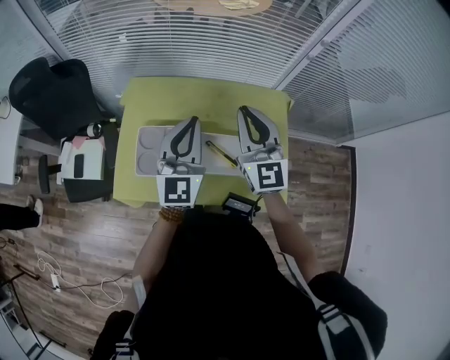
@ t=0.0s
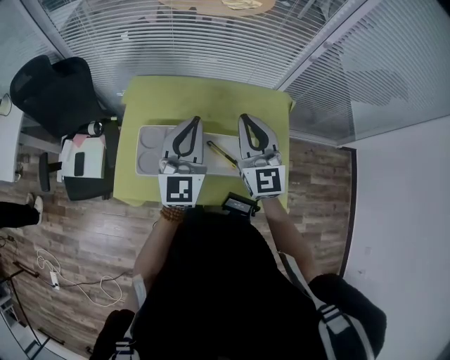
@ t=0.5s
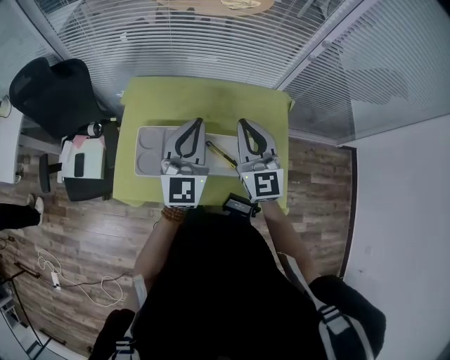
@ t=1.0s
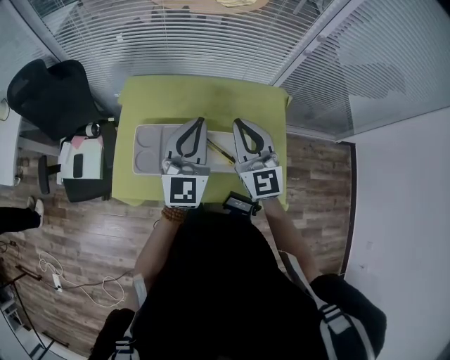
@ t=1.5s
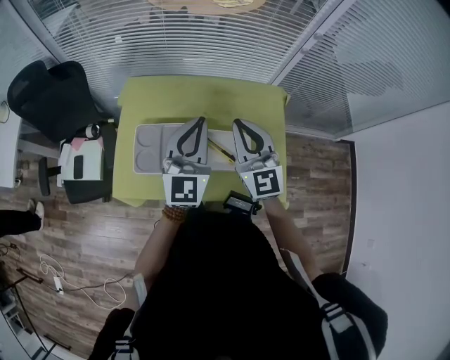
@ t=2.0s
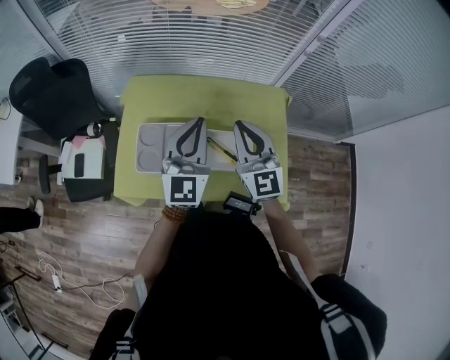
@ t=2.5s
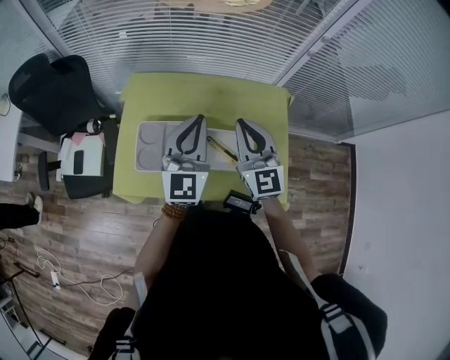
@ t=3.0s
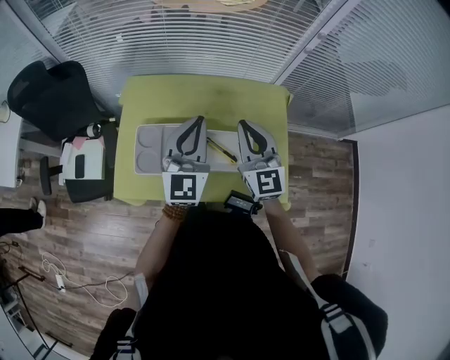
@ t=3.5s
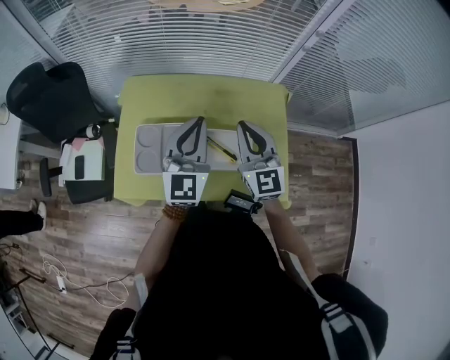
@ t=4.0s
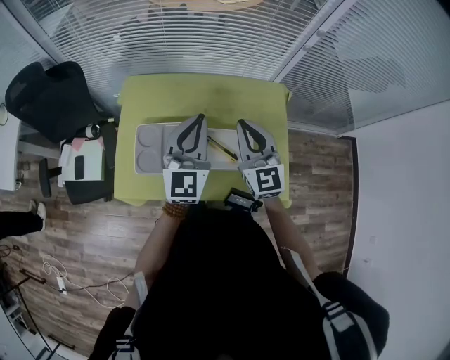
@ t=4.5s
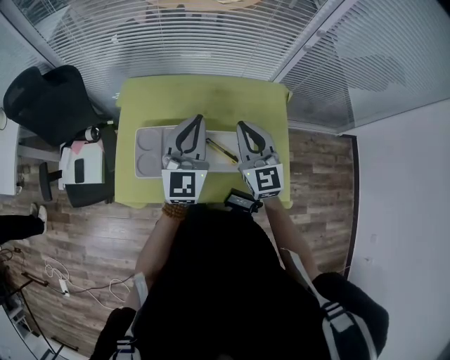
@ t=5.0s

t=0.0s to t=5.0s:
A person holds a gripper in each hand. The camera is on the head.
t=0.0s to t=2.5s: The grippers move only a little.
t=2.5s to t=5.0s: The right gripper changes place by about 5 cm.

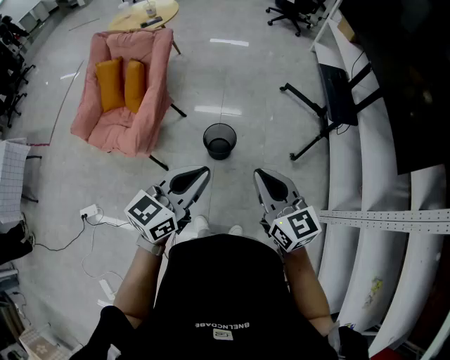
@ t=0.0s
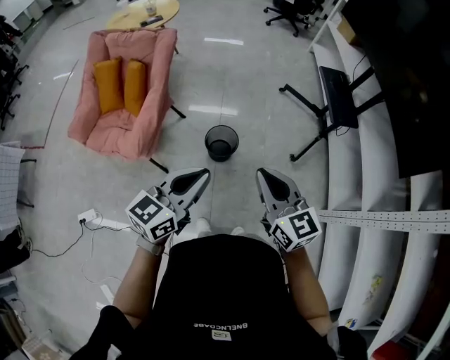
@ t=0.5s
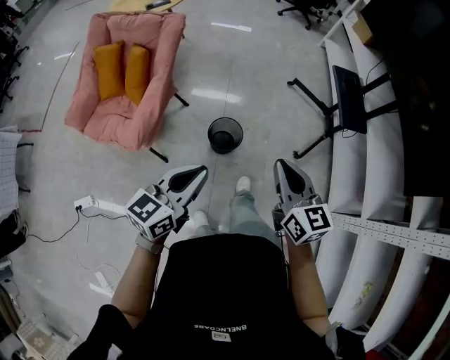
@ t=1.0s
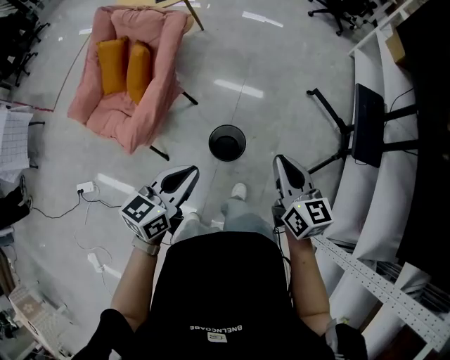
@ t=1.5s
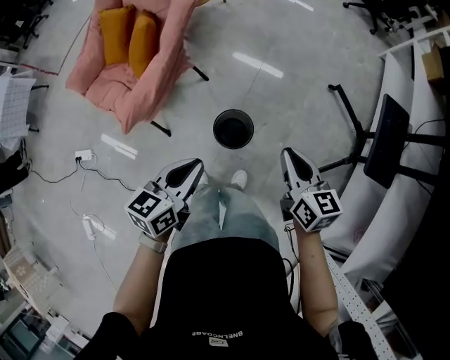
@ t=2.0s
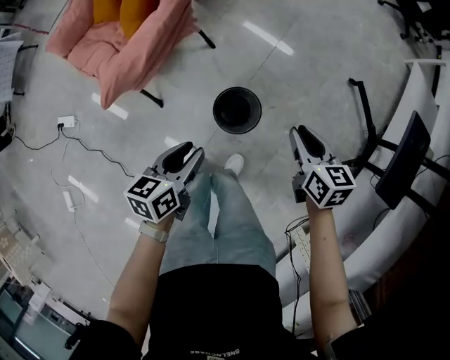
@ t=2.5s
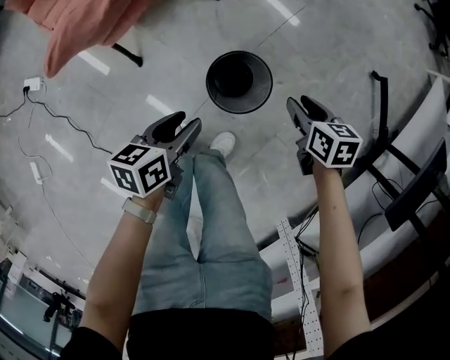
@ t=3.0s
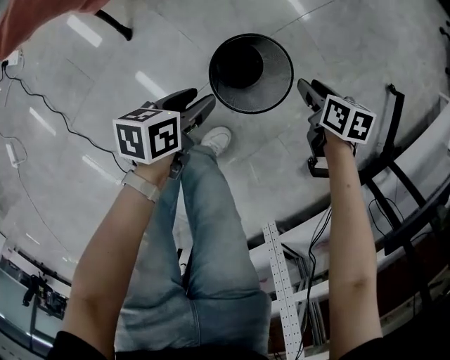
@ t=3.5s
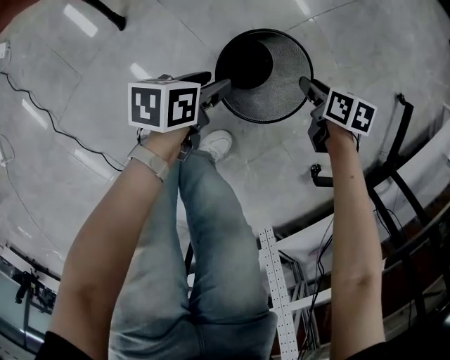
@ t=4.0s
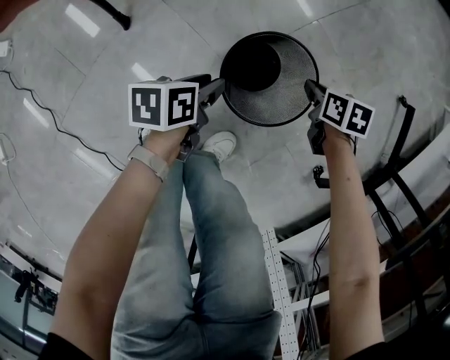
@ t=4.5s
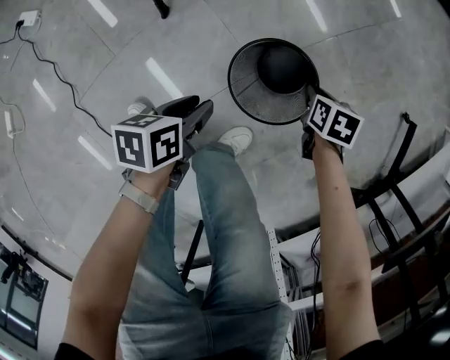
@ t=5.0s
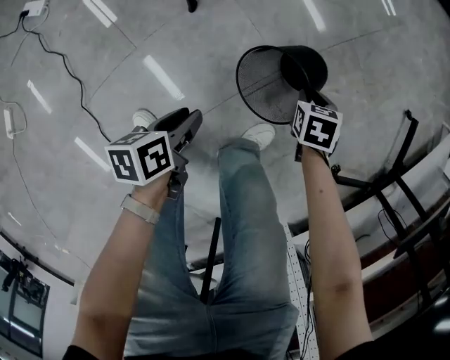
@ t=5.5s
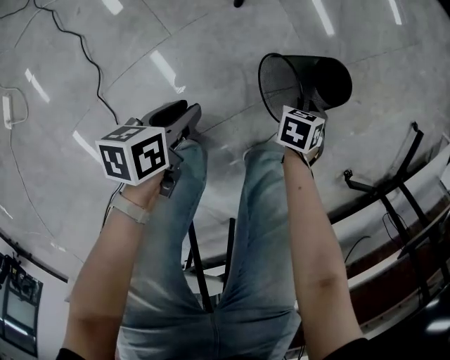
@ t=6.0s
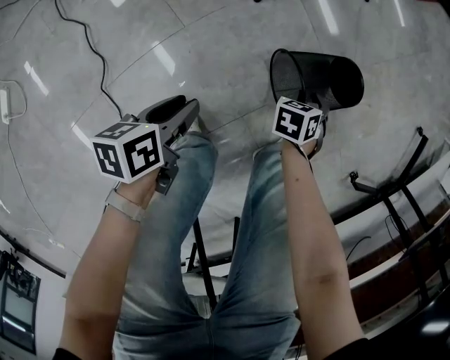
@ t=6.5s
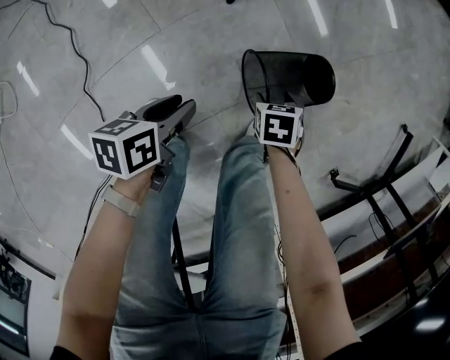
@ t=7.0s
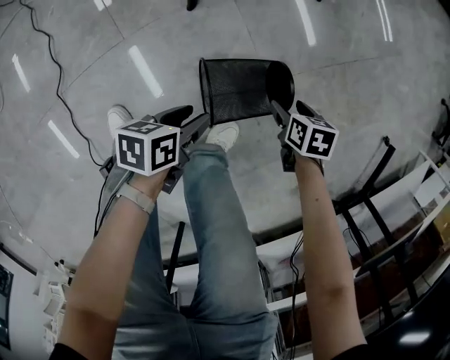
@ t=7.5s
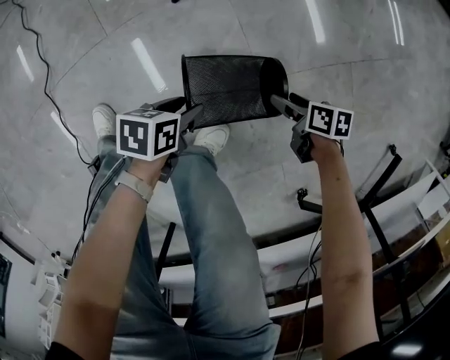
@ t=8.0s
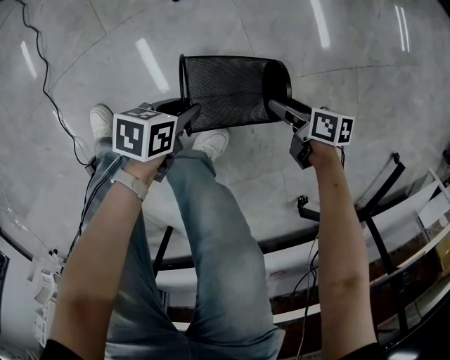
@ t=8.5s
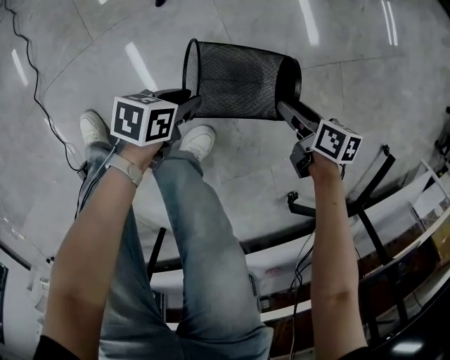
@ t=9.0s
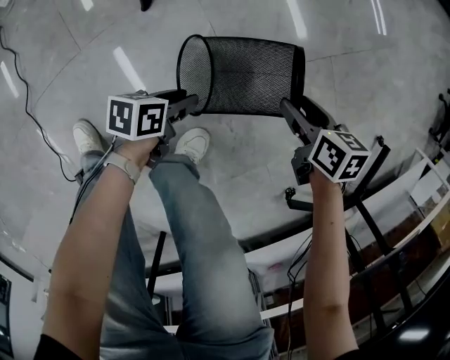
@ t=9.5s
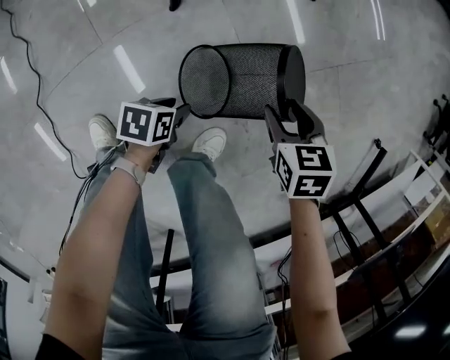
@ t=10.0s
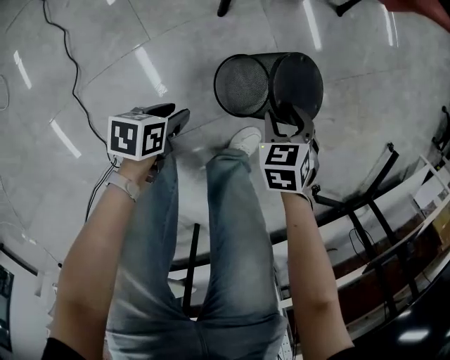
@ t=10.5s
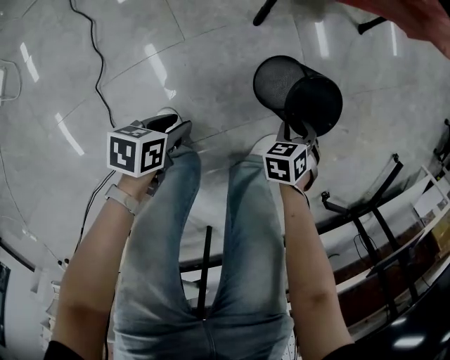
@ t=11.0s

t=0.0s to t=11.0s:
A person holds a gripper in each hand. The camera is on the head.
t=0.0s to t=2.0s: Both grippers travel together forward and downward, roughly 30 cm. The left gripper turns by some 40 degrees; the right gripper turns by roughly 20 degrees.
t=2.0s to t=3.5s: Both grippers travel together downward, about 50 cm. The left gripper rotates approximately 40 degrees, and opens up; the right gripper points its fingers about 40 degrees further downward, and opens.
t=3.5s to t=5.5s: The two grippers go roughly 25 cm to the left and backward. The right gripper changes its angle by approximately 30 degrees.
t=5.5s to t=7.5s: The right gripper opens its fingers.
t=7.5s to t=9.0s: The left gripper heads downward, covering about 10 cm. The right gripper goes downward and returns, some 10 cm each way, and rotates some 30 degrees.
t=9.0s to t=11.0s: The right gripper ends up about 25 cm from where it was, changes its angle by roughly 70 degrees, and closes up. Meanwhile the left gripper ends up approximately 35 cm from where it was.

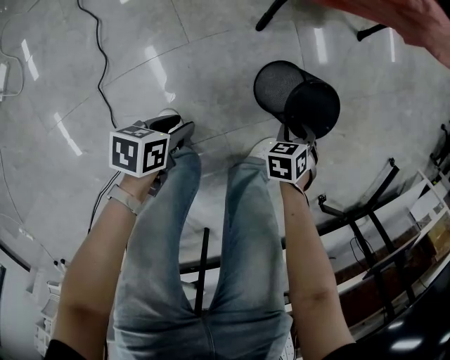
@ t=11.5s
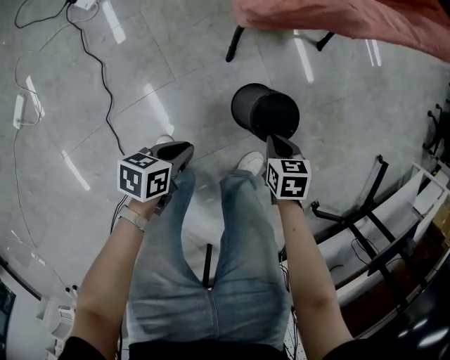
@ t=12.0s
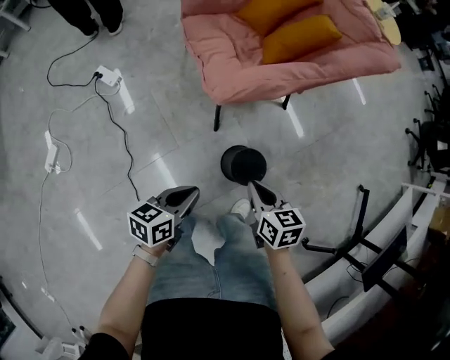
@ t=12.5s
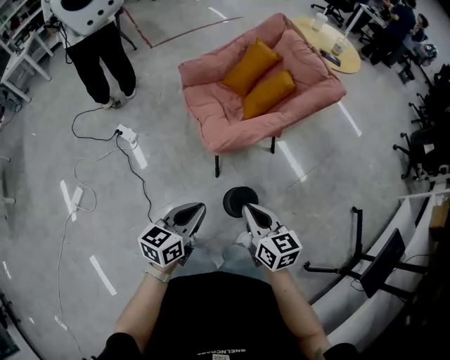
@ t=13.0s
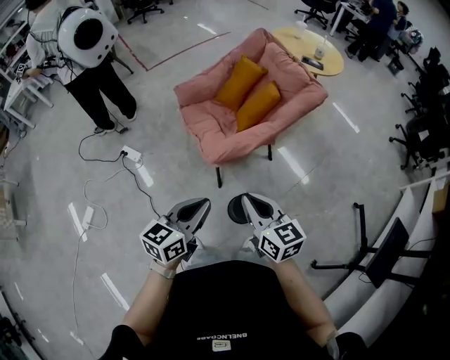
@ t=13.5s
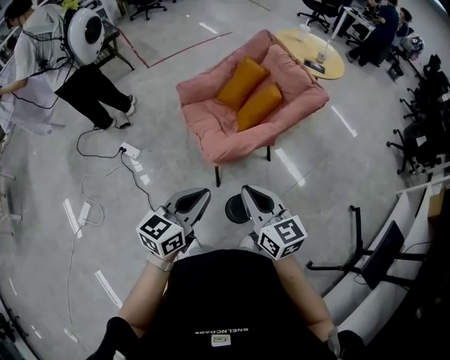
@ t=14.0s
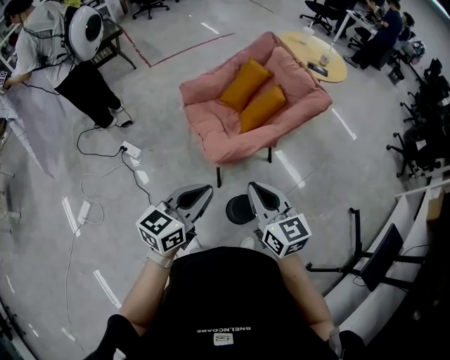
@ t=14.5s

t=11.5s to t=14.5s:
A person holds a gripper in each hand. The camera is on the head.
t=11.5s to t=13.0s: Both grippers move upward, some 60 cm. The right gripper angles its fingers upward, by some 50 degrees, and closes its fingers; the left gripper turns by approximately 50 degrees, and closes.
t=13.0s to t=14.5s: The two grippers go about 15 cm upward.

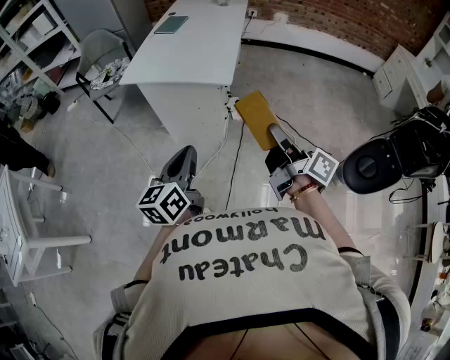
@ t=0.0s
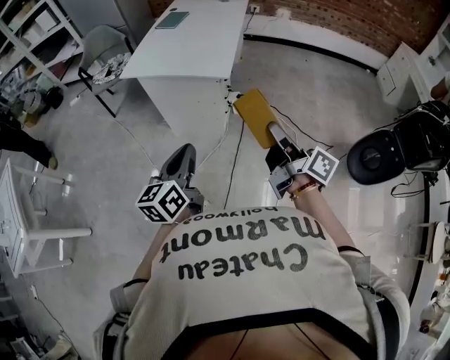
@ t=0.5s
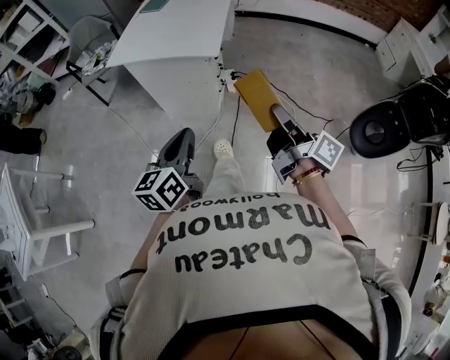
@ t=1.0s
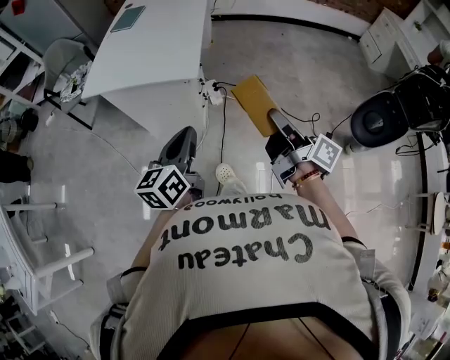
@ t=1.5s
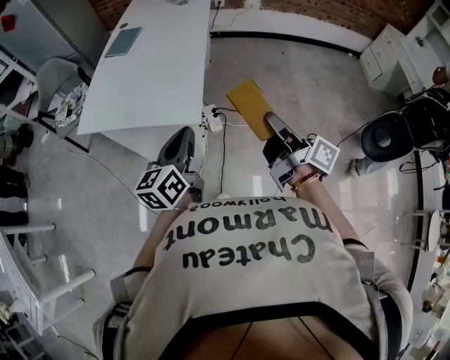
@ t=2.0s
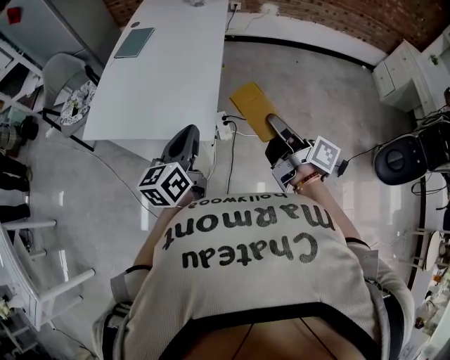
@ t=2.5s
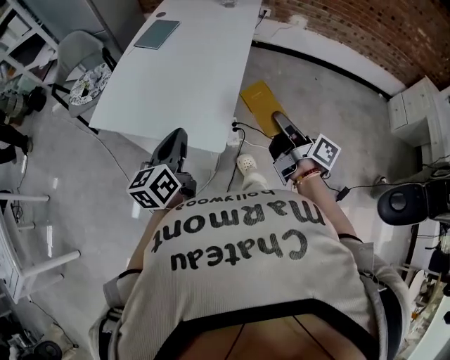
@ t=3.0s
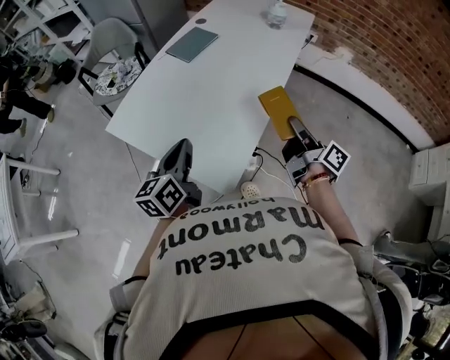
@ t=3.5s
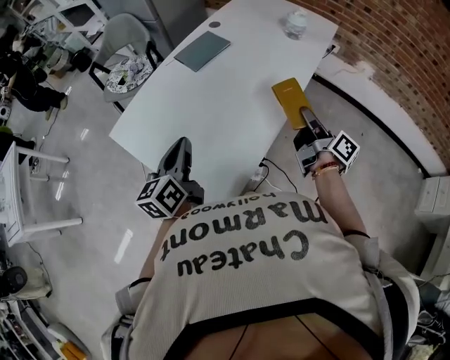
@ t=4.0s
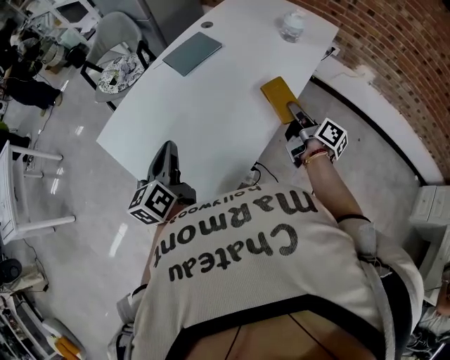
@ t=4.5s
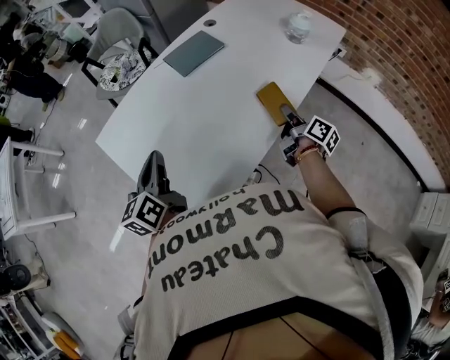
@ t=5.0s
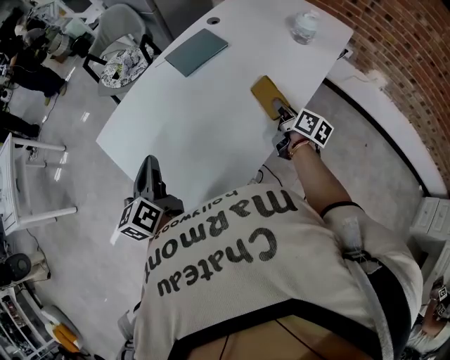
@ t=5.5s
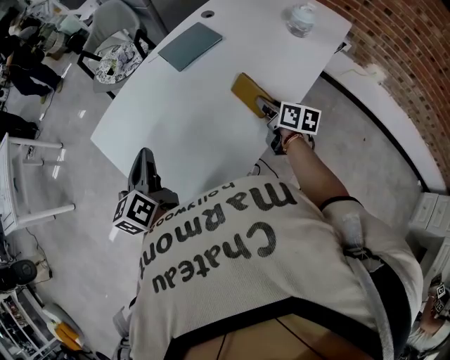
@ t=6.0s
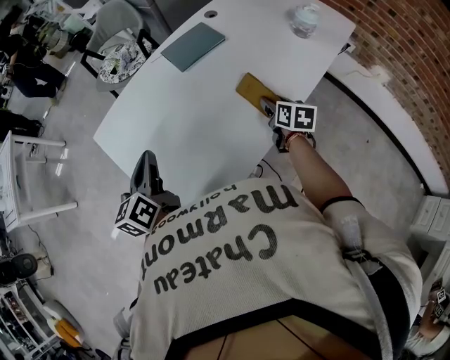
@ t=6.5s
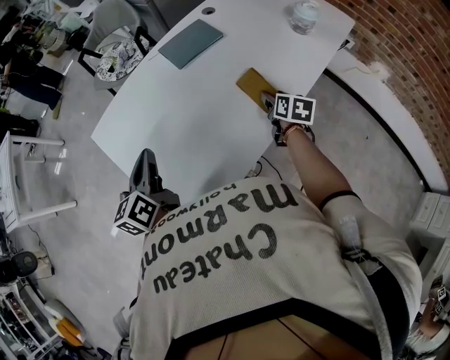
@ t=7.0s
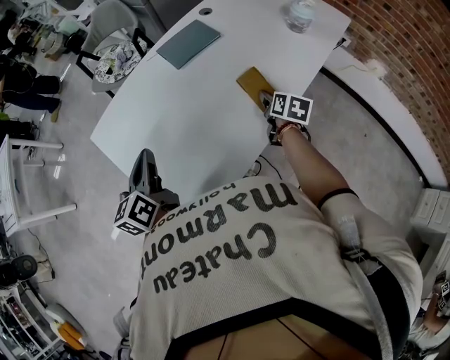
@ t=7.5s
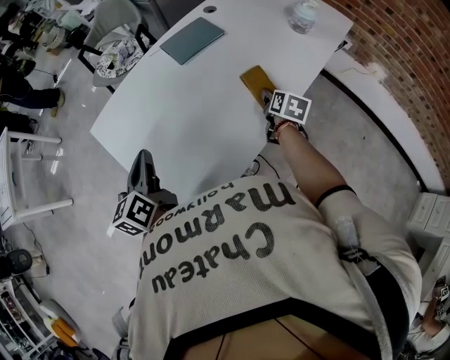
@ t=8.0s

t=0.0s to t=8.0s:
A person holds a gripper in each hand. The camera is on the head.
t=0.0s to t=2.0s: Both grippers travel together forward and to the right, some 30 cm.
t=2.0s to t=4.0s: The right gripper moves some 50 cm, while the left gripper ends up approximately 30 cm from where it was, and turns by about 40 degrees.
t=4.0s to t=6.0s: The left gripper moves forward, some 5 cm, while the right gripper travels forward and downward by approximately 20 cm, and swivels about 40 degrees.
t=6.0s to t=8.0s: The right gripper moves about 5 cm, changes its angle by some 30 degrees, and opens.
